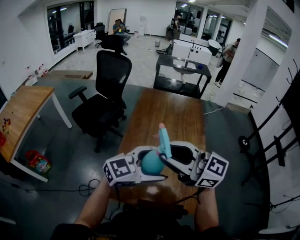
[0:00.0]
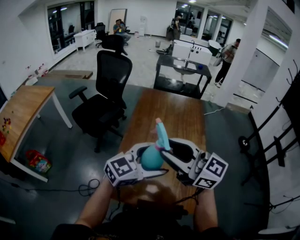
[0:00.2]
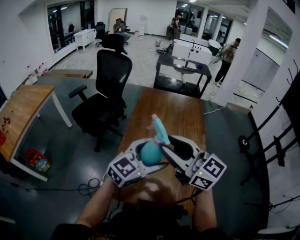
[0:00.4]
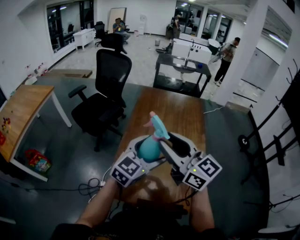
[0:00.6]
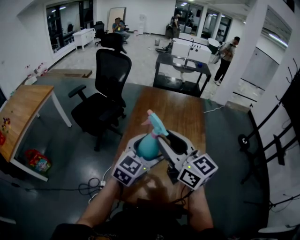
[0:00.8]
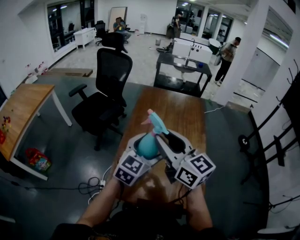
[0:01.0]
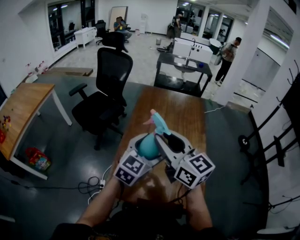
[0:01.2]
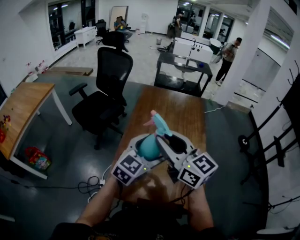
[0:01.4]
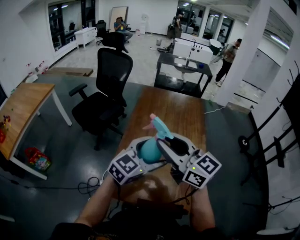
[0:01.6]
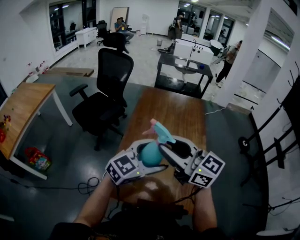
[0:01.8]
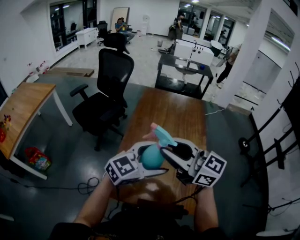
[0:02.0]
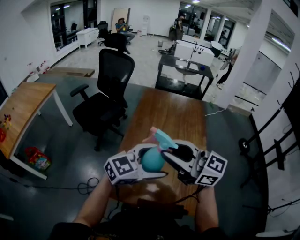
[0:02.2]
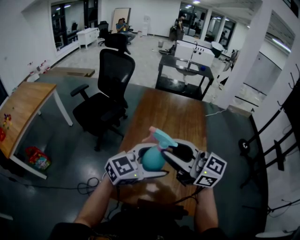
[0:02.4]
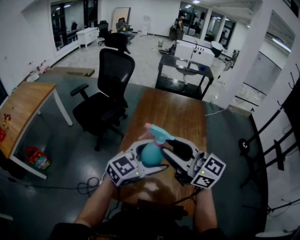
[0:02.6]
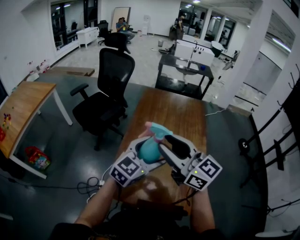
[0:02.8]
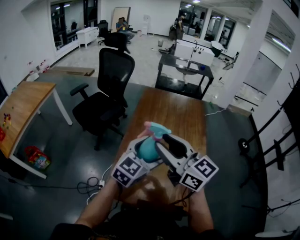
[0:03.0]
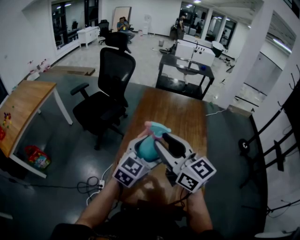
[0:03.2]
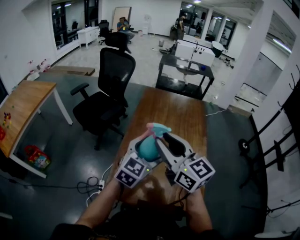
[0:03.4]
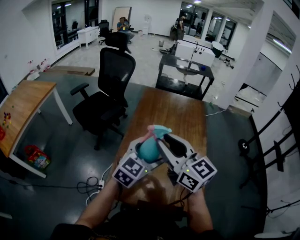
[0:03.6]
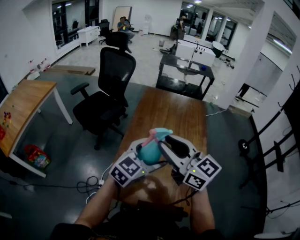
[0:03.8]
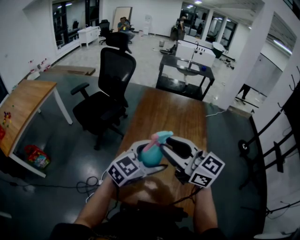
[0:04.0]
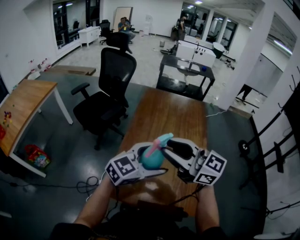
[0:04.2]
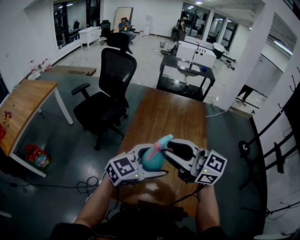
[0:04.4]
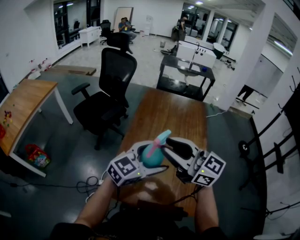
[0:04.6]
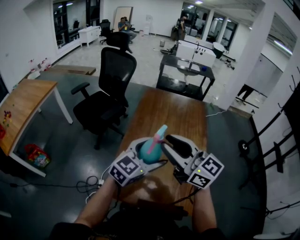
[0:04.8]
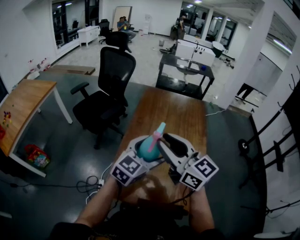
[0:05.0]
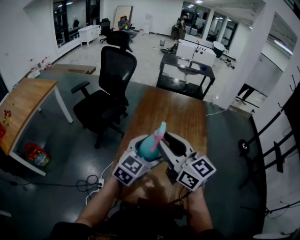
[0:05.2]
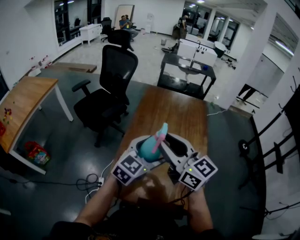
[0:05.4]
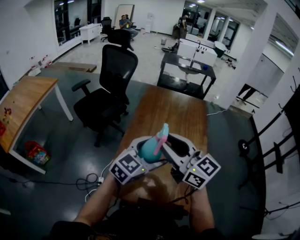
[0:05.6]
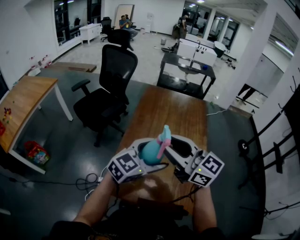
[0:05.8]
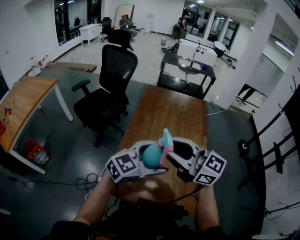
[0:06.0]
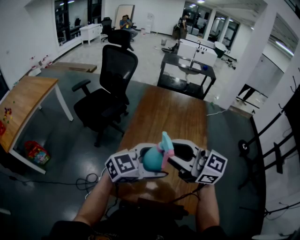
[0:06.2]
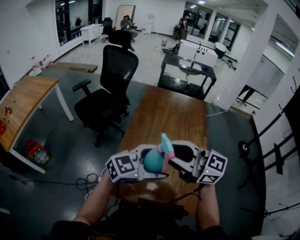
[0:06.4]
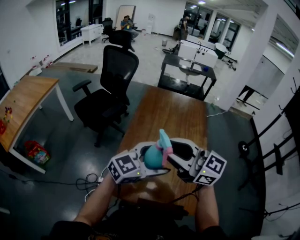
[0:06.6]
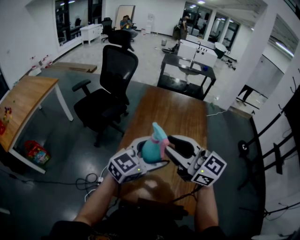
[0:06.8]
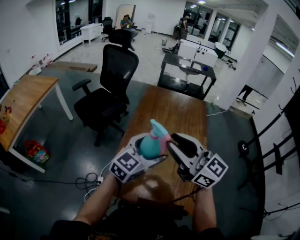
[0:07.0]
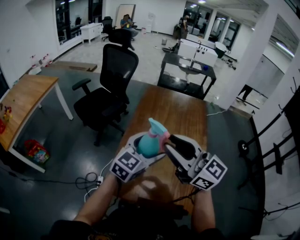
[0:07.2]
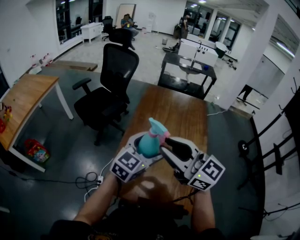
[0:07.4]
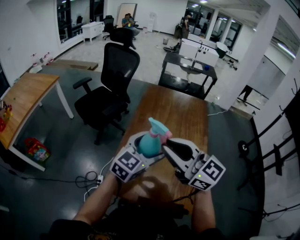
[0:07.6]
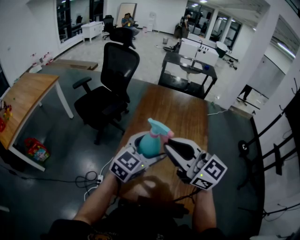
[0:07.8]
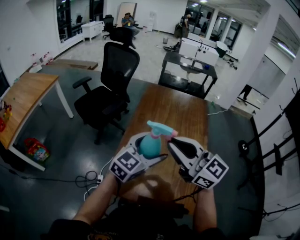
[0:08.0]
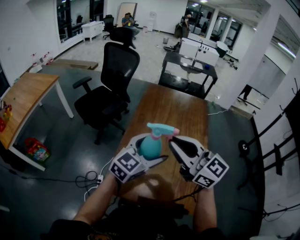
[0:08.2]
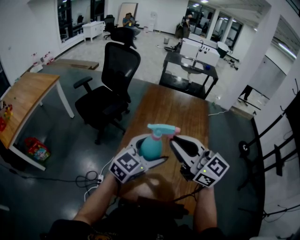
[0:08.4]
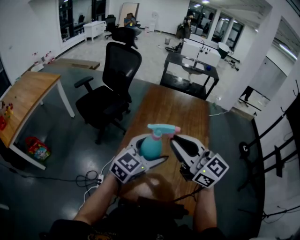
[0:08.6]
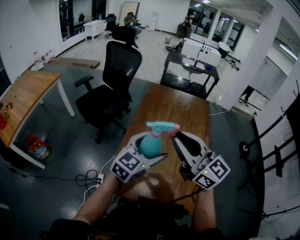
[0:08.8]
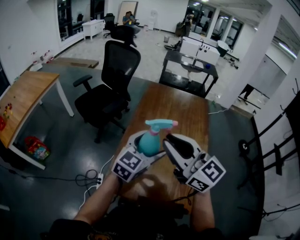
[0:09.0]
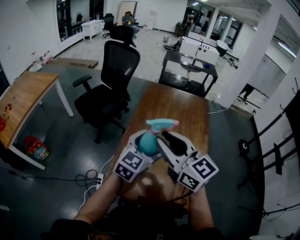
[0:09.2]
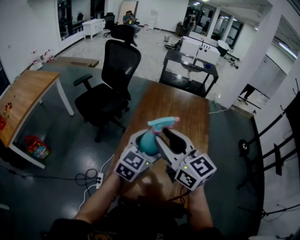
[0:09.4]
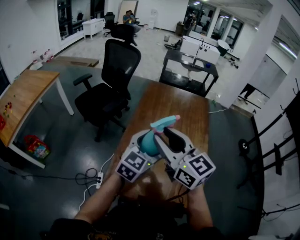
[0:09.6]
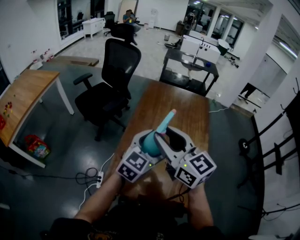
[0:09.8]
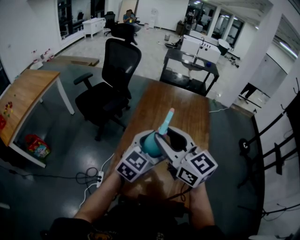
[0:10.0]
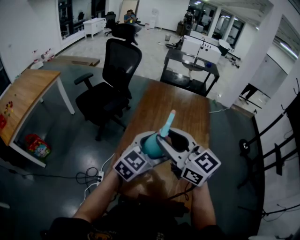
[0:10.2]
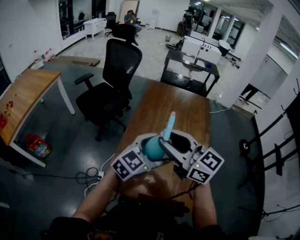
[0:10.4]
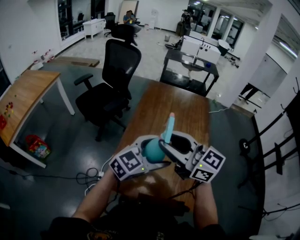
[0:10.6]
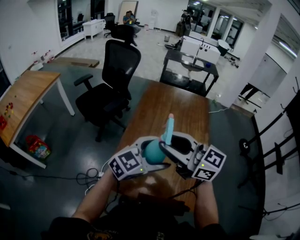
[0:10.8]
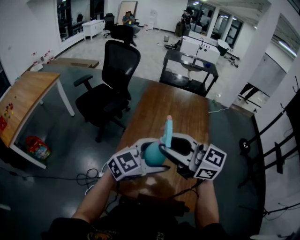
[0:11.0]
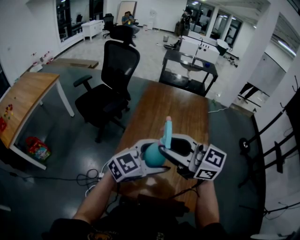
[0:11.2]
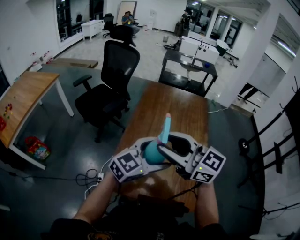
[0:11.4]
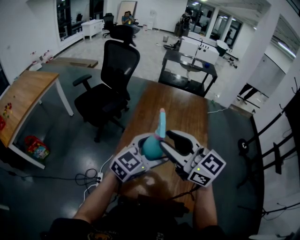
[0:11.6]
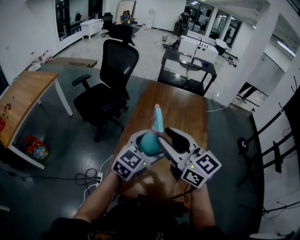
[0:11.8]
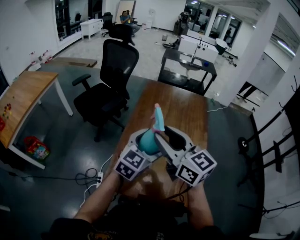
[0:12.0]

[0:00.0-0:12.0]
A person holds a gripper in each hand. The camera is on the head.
0:00.0 to 0:01.6: The right gripper changes place by about 5 cm.
0:01.6 to 0:03.0: The grippers make only small movements.
0:03.0 to 0:04.4: The left gripper shifts by approximately 5 cm, and turns by roughly 20 degrees.
0:06.0 to 0:07.6: The left gripper changes place by roughly 5 cm, and turns by roughly 20 degrees.
0:07.6 to 0:10.4: There are only small adjustments of the grippers.
0:10.4 to 0:12.0: The grippers move only a little.

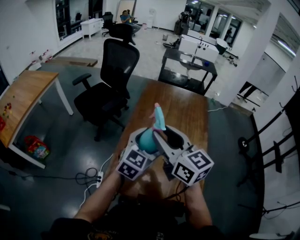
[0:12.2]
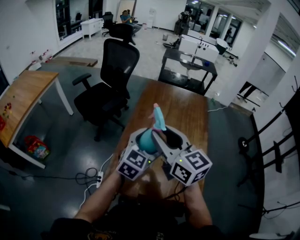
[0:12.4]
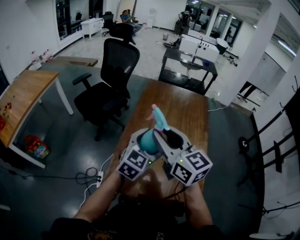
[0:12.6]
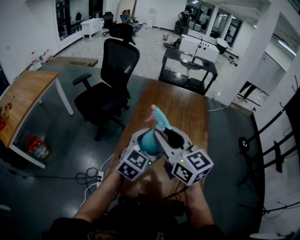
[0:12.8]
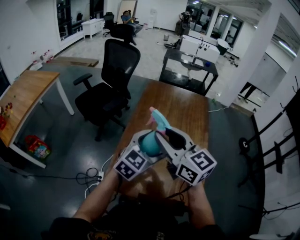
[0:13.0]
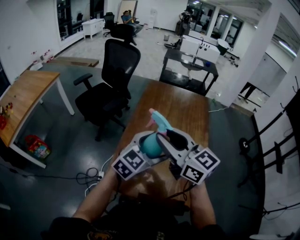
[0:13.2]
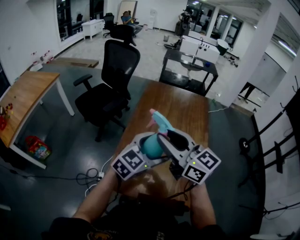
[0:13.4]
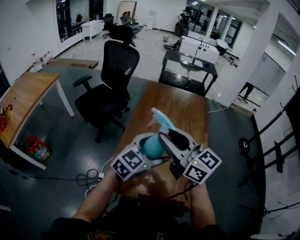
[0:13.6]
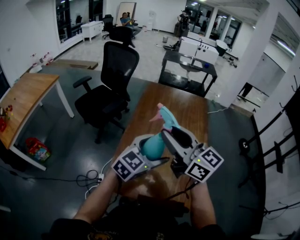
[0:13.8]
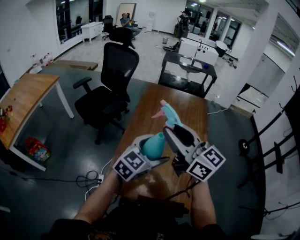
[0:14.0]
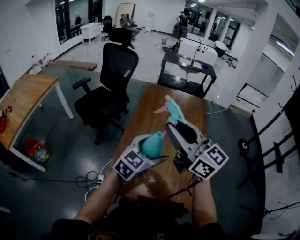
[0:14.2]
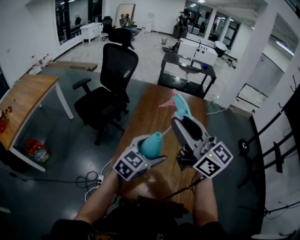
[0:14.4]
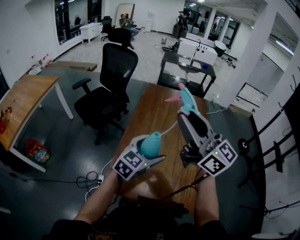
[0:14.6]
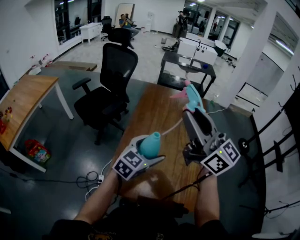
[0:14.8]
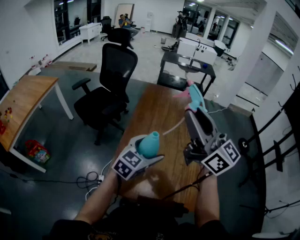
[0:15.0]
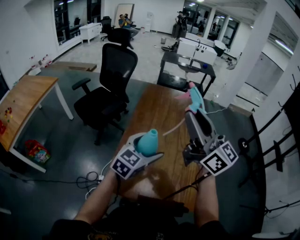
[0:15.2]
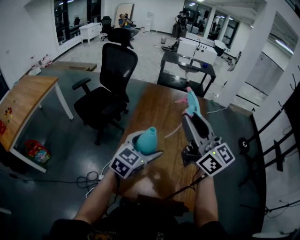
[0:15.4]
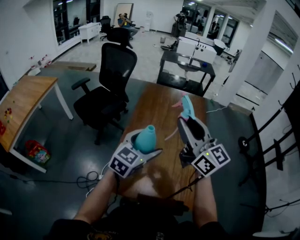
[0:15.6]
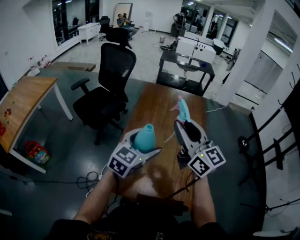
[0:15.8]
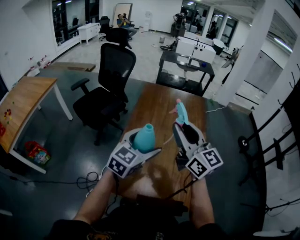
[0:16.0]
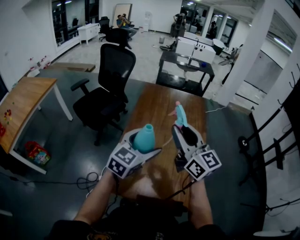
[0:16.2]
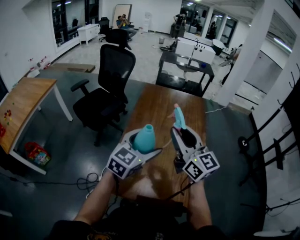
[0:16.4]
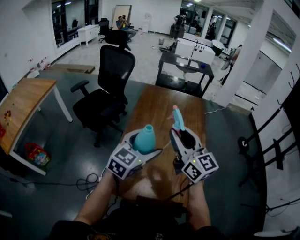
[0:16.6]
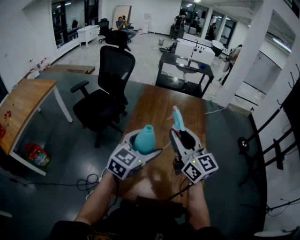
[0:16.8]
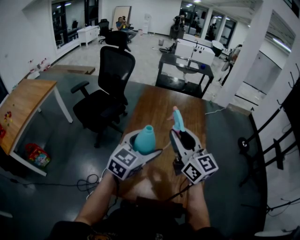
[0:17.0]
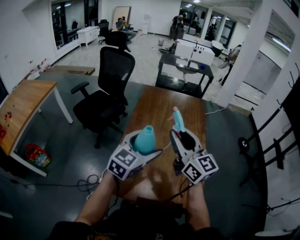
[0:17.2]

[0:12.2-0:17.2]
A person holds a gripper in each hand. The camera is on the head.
0:12.2 to 0:13.8: The grippers stay close to where they were, moving slightly.
0:13.8 to 0:15.6: The right gripper is displaced to the right by some 5 cm, and moves roughly 10 cm upward and comes back.
0:15.6 to 0:17.2: The right gripper is displaced downward by approximately 5 cm.

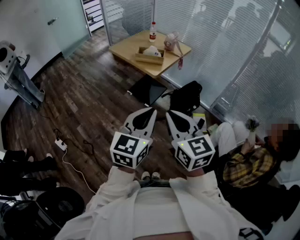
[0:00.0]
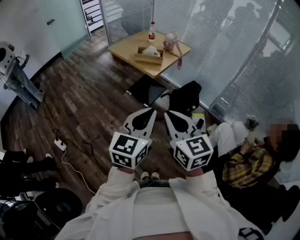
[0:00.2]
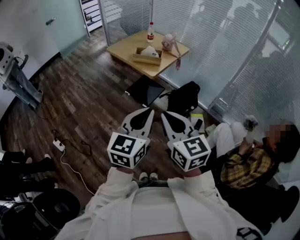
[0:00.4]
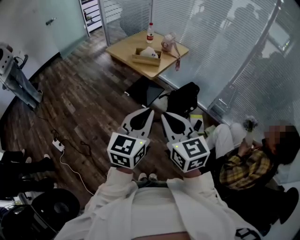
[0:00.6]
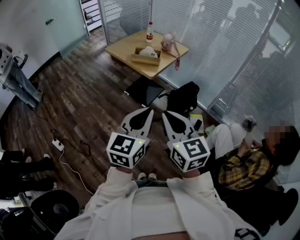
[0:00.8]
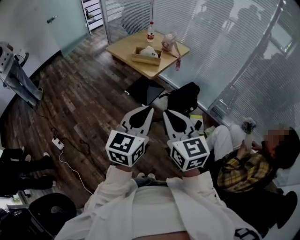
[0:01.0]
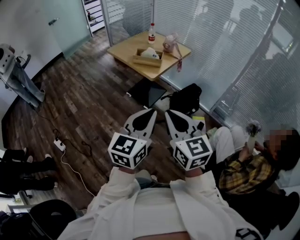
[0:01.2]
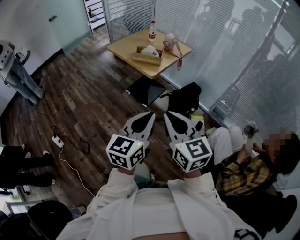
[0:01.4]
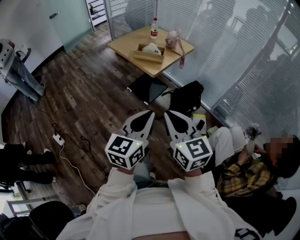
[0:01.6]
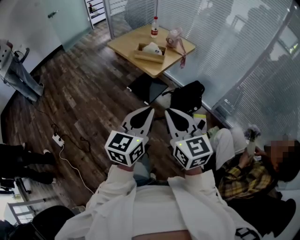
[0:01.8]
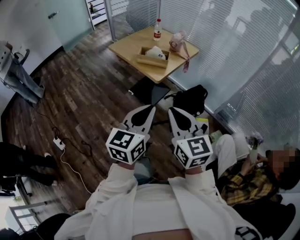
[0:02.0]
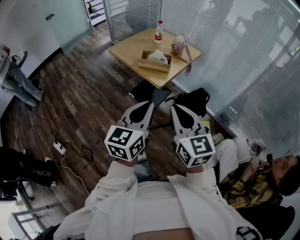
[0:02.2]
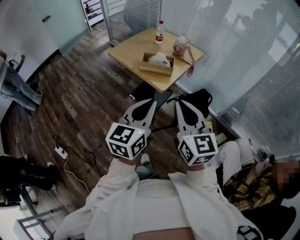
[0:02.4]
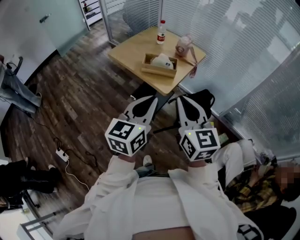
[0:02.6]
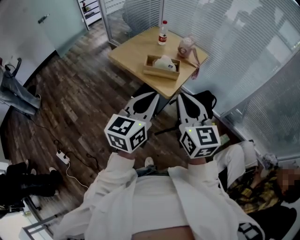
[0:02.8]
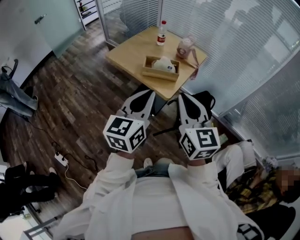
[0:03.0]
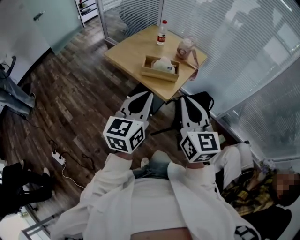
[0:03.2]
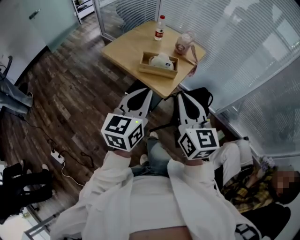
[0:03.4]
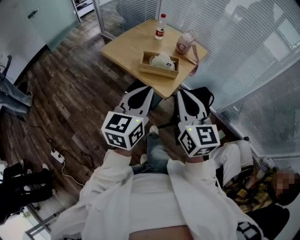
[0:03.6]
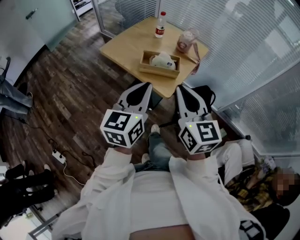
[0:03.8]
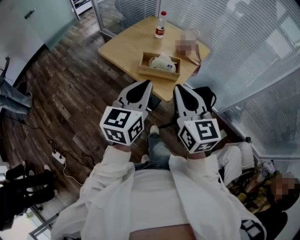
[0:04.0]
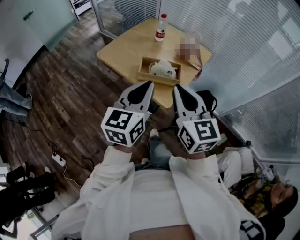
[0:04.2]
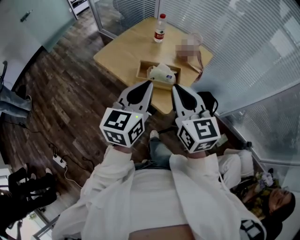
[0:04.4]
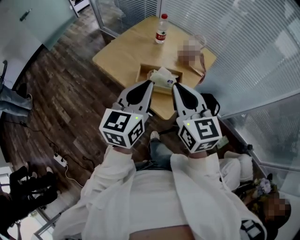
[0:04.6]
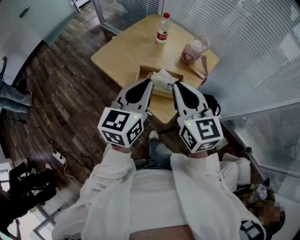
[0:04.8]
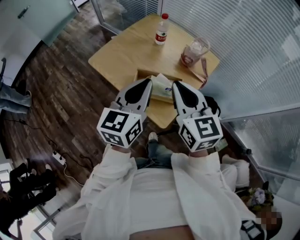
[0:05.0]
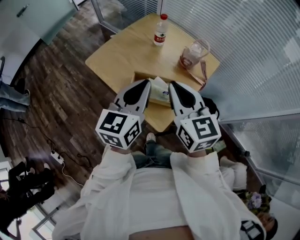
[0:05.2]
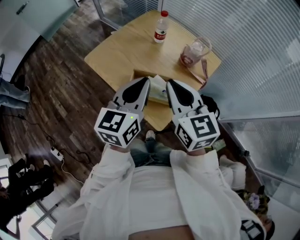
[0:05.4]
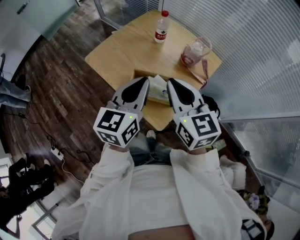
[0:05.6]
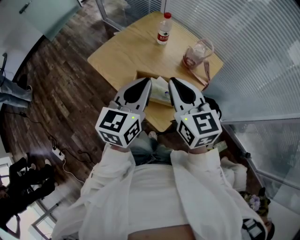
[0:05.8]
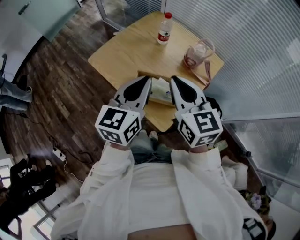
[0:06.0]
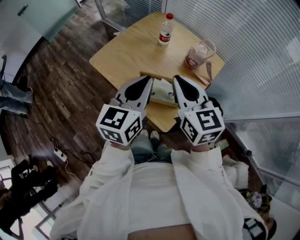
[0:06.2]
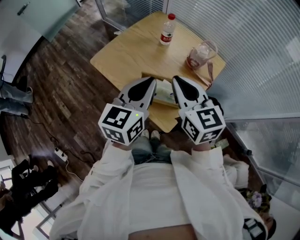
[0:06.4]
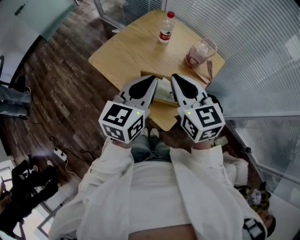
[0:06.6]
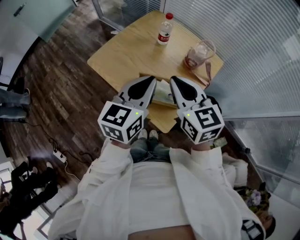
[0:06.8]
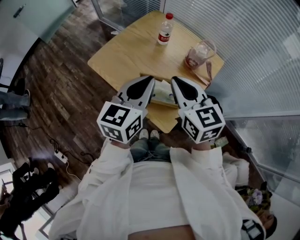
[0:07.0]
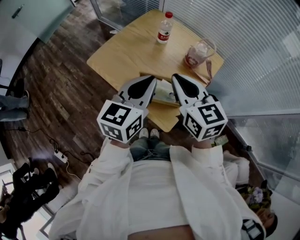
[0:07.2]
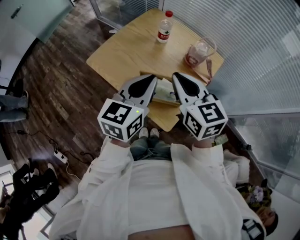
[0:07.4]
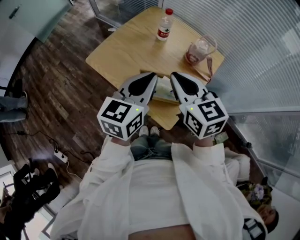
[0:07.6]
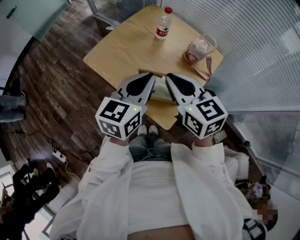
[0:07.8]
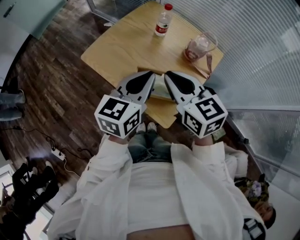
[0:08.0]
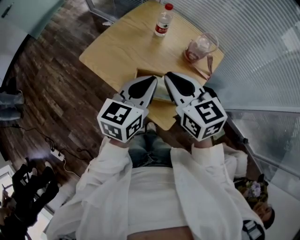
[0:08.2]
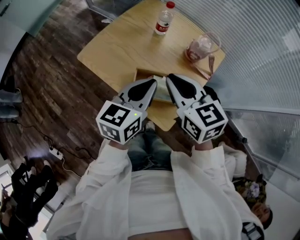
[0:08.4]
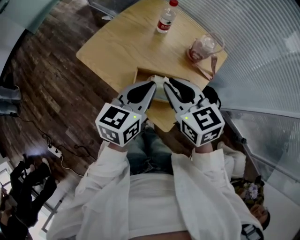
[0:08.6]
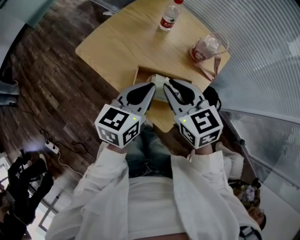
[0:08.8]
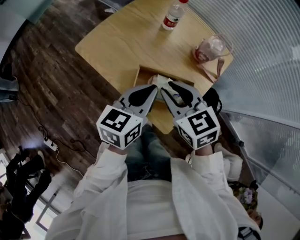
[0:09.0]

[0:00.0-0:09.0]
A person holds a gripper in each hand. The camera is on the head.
0:00.0 to 0:01.6: The grippers make only small movements.
0:01.6 to 0:03.0: The right gripper shifts roughly 25 cm forward; the left gripper is displaced forward and to the left by approximately 30 cm.
0:03.0 to 0:04.4: The two grippers go approximately 15 cm forward.
0:04.4 to 0:06.0: The grippers both shift forward by roughly 15 cm.
0:06.0 to 0:07.6: The grippers make only small movements.
0:07.6 to 0:09.0: The grippers both shift downward by approximately 10 cm.
